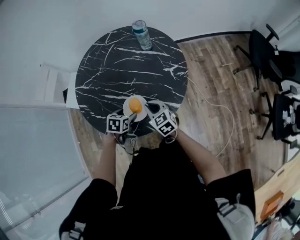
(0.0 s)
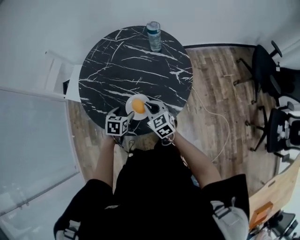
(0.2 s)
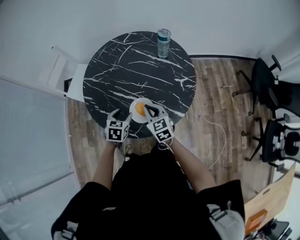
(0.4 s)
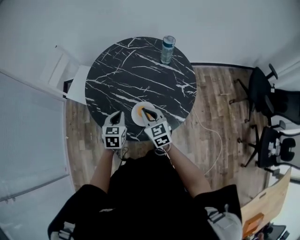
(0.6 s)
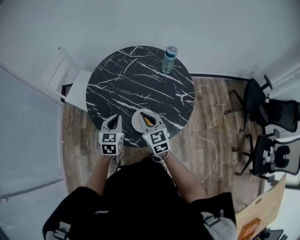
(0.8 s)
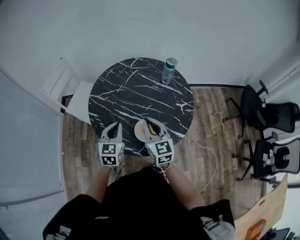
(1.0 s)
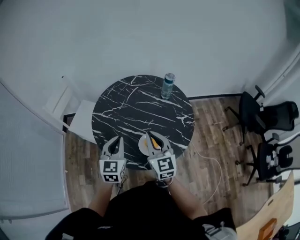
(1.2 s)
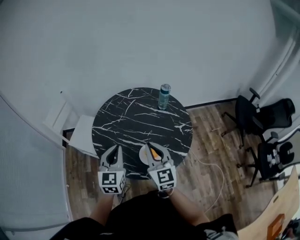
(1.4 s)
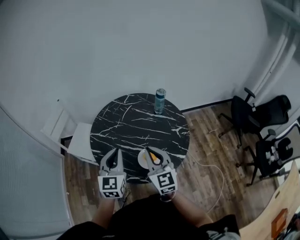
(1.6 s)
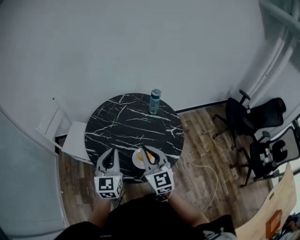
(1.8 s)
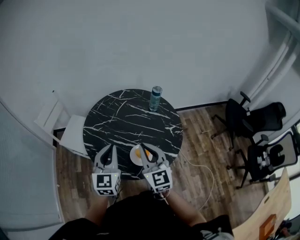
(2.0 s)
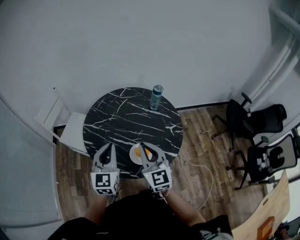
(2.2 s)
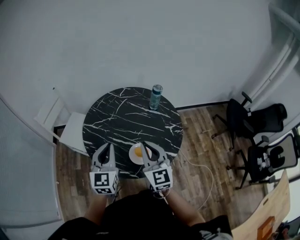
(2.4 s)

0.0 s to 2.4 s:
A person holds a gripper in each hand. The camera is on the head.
0.0 to 1.2 s: Both grippers travel together upward and to the left, approximately 25 cm. The left gripper tips its fingers upward by about 50 degrees, and closes its fingers, while the right gripper changes its angle by some 30 degrees.
1.2 to 2.4 s: The grippers both shift upward by about 5 cm.

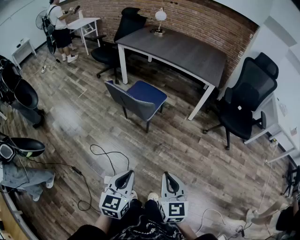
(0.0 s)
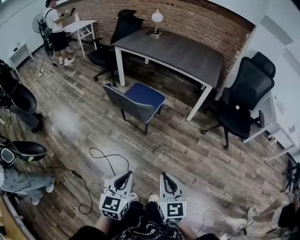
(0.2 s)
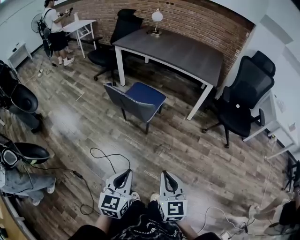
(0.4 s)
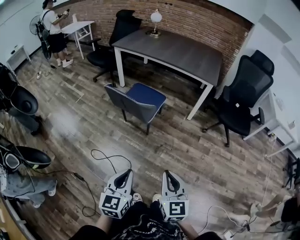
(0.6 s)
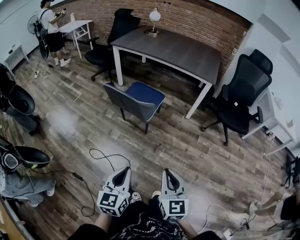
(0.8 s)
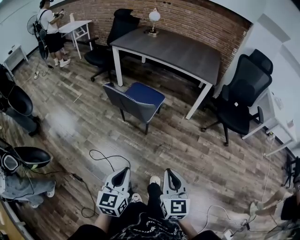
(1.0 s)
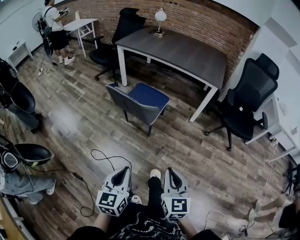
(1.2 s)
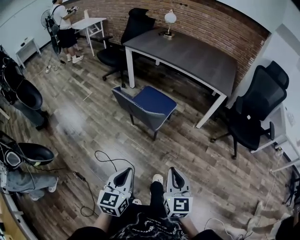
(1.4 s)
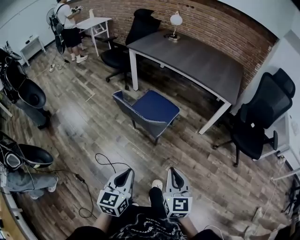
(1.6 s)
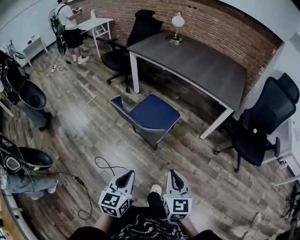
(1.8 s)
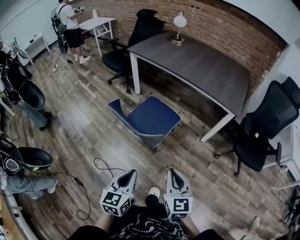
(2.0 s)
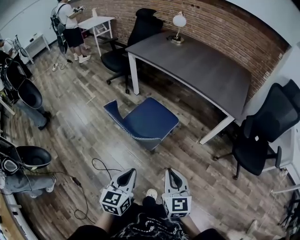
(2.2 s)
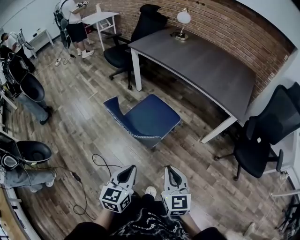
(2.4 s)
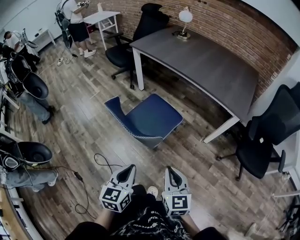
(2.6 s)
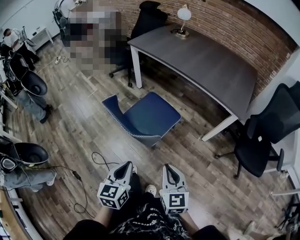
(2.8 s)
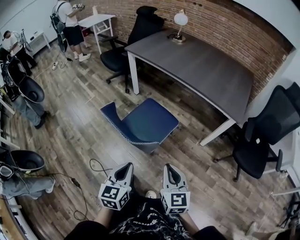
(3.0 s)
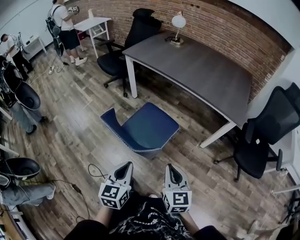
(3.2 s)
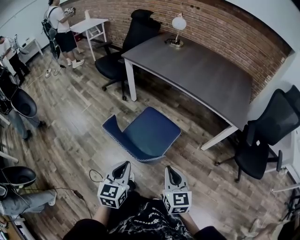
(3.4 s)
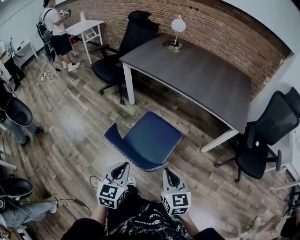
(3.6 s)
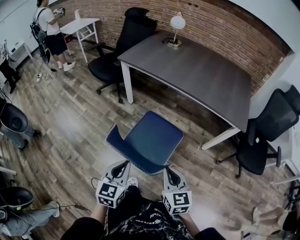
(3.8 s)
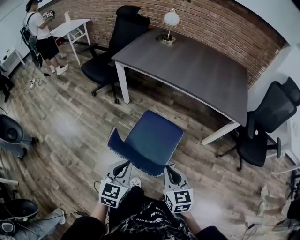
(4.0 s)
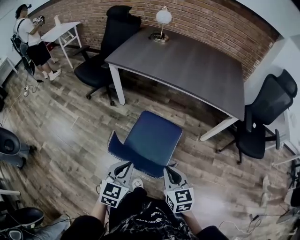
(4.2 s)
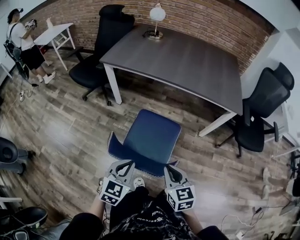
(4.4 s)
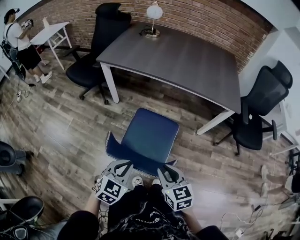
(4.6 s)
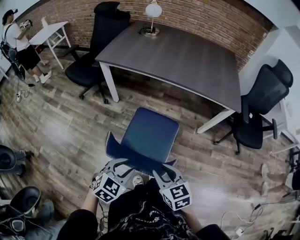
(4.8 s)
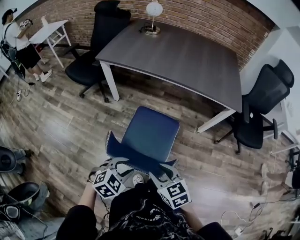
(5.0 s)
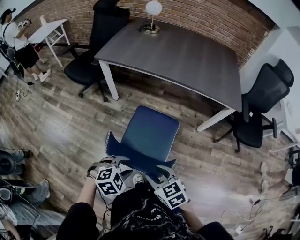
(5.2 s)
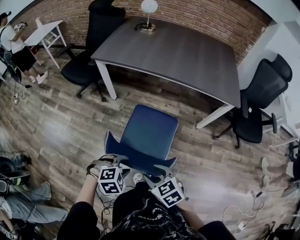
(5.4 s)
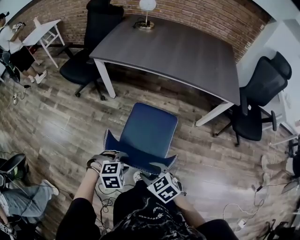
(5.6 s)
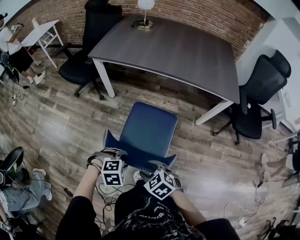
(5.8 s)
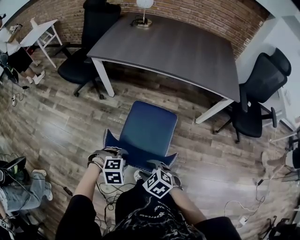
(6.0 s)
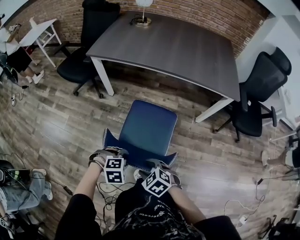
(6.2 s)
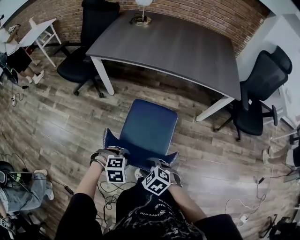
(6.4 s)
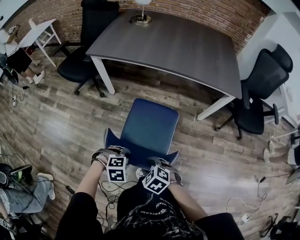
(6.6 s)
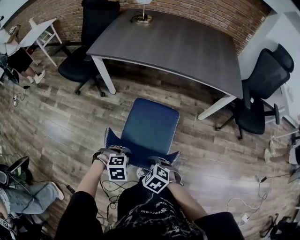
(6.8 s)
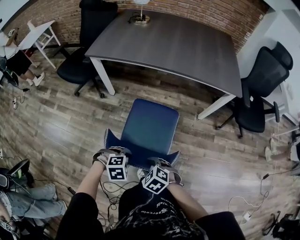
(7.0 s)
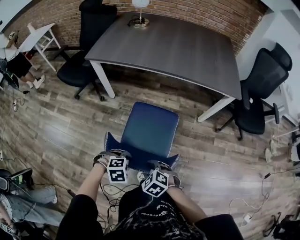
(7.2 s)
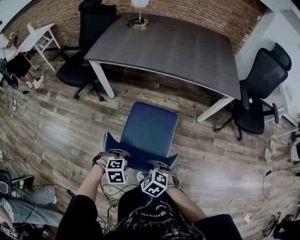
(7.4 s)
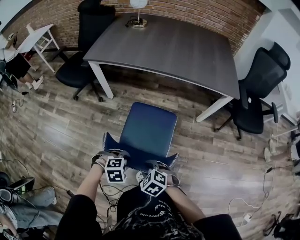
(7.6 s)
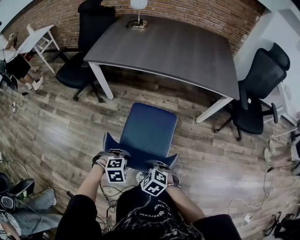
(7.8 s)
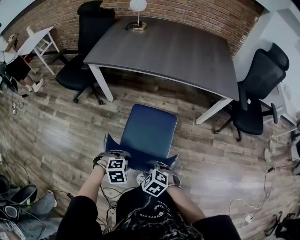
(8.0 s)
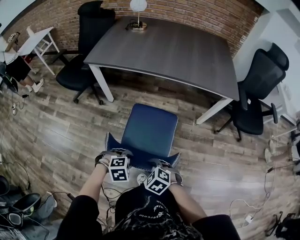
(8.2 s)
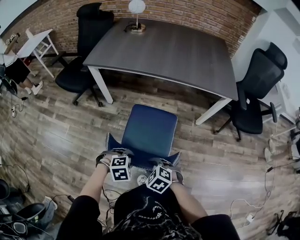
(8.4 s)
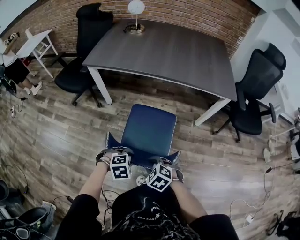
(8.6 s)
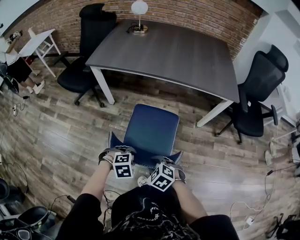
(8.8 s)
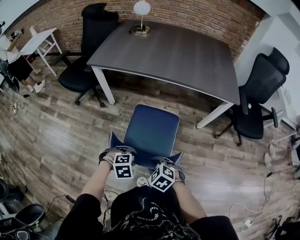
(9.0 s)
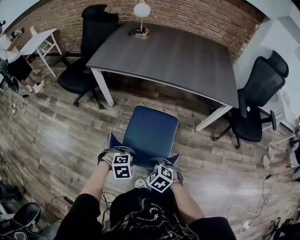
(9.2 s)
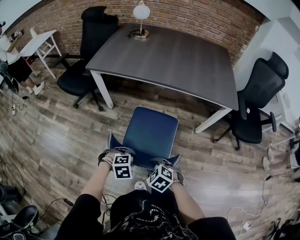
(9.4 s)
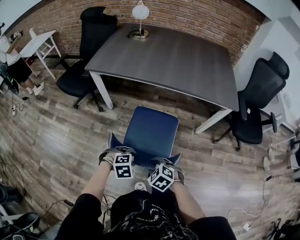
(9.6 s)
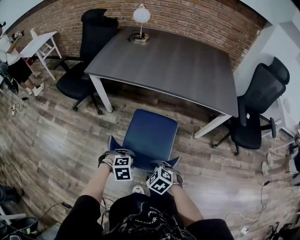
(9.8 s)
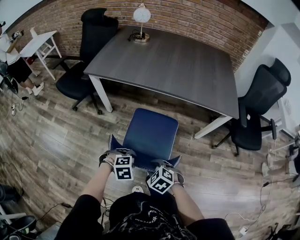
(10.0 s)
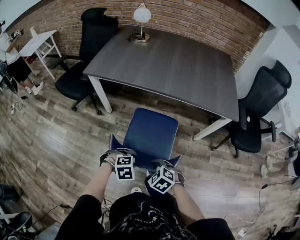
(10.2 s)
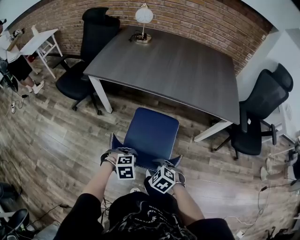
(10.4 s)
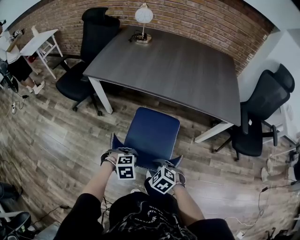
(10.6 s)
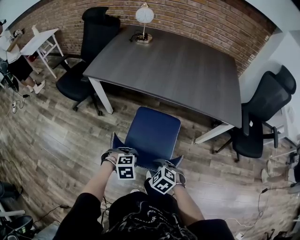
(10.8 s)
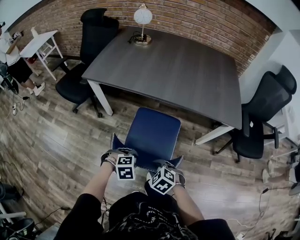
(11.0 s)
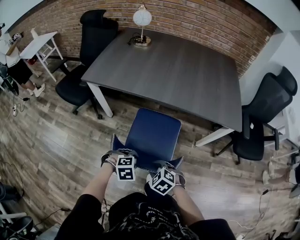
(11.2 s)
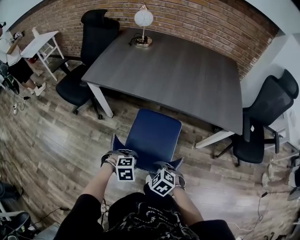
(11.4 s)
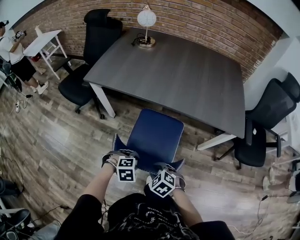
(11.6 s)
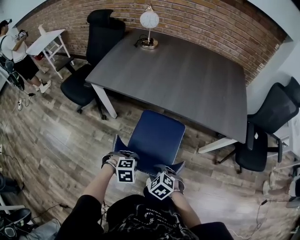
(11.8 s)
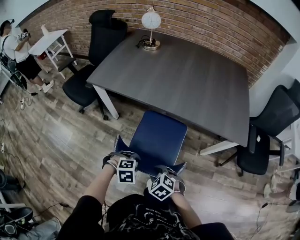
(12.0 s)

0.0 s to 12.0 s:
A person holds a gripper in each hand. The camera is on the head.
0.0 to 1.6 s: The right gripper shifts about 15 cm forward. Meanwhile the left gripper moves forward and to the left, approximately 15 cm.
1.6 to 3.0 s: Both grippers travel together forward, about 15 cm.
3.0 to 4.4 s: The left gripper heads forward and to the left, covering approximately 25 cm, and swivels roughly 40 degrees; the right gripper heads to the left and forward, covering about 20 cm.
4.4 to 6.0 s: The left gripper shifts about 10 cm downward, points its fingers roughly 40 degrees further downward, and opens. The right gripper moves some 15 cm, rotates roughly 40 degrees, and opens up.
6.0 to 7.6 s: The right gripper closes up.
7.6 to 9.0 s: There are only small adjustments of the grippers.
9.0 to 10.4 s: The two grippers go some 10 cm forward.
10.4 to 12.0 s: Both grippers travel together forward, some 10 cm.

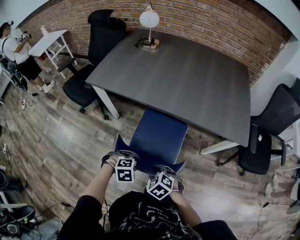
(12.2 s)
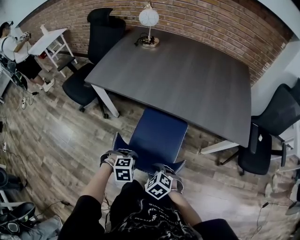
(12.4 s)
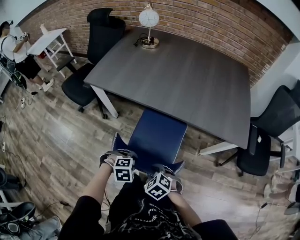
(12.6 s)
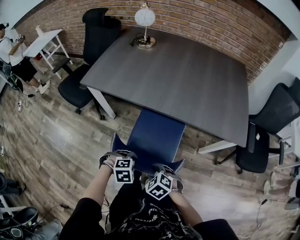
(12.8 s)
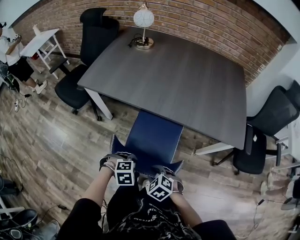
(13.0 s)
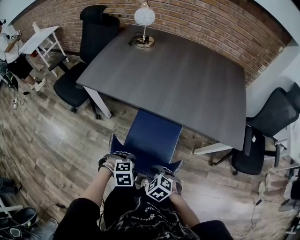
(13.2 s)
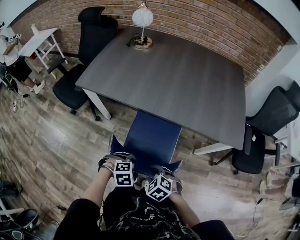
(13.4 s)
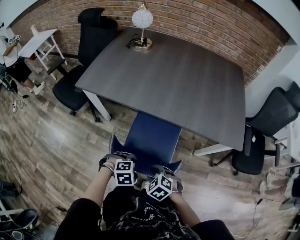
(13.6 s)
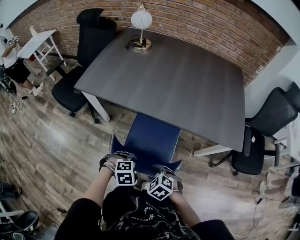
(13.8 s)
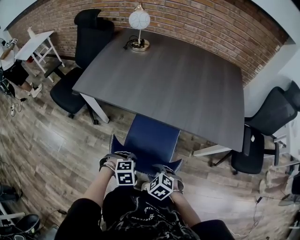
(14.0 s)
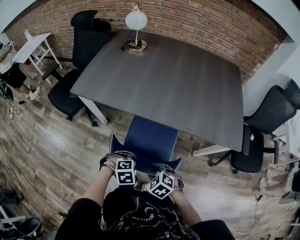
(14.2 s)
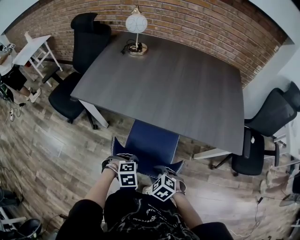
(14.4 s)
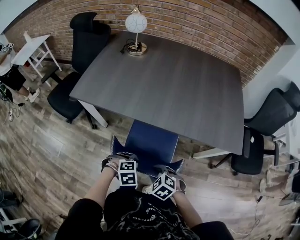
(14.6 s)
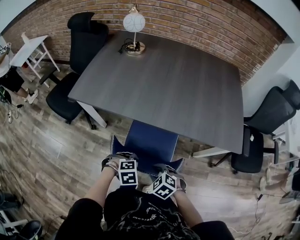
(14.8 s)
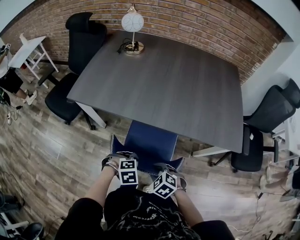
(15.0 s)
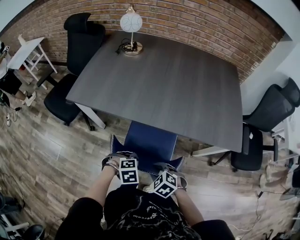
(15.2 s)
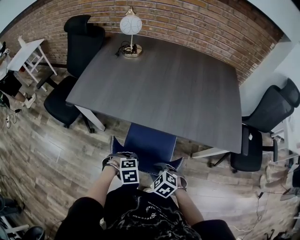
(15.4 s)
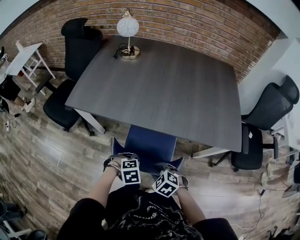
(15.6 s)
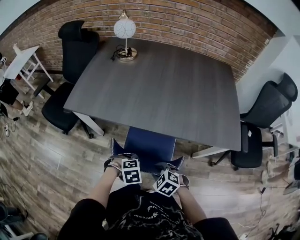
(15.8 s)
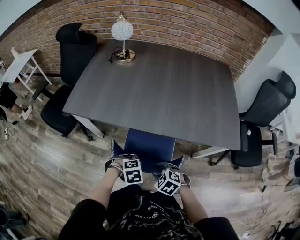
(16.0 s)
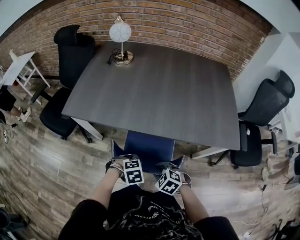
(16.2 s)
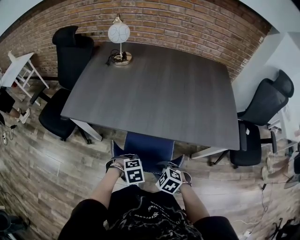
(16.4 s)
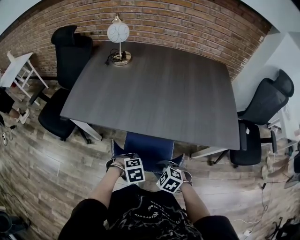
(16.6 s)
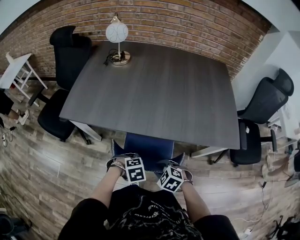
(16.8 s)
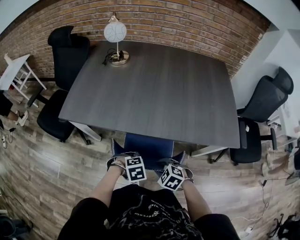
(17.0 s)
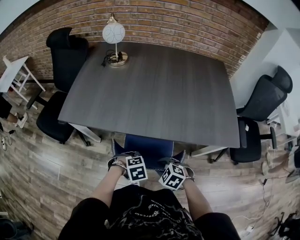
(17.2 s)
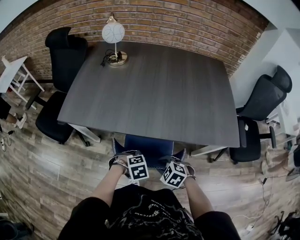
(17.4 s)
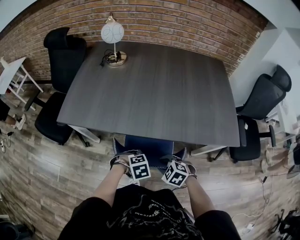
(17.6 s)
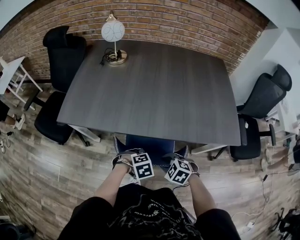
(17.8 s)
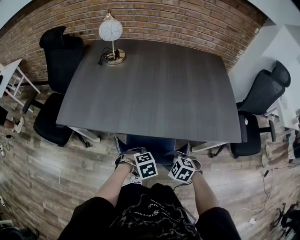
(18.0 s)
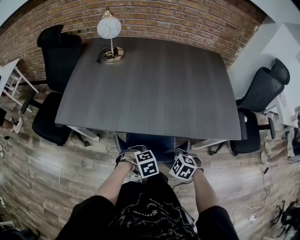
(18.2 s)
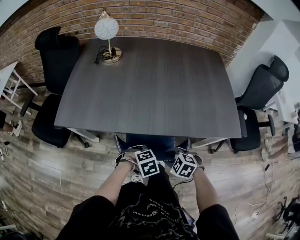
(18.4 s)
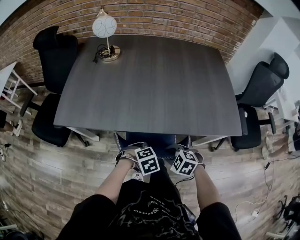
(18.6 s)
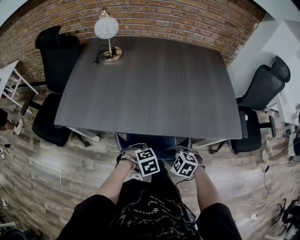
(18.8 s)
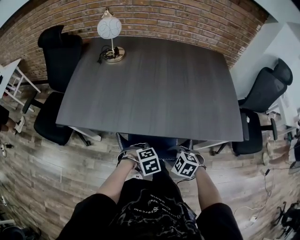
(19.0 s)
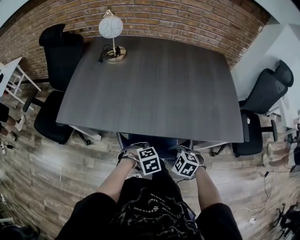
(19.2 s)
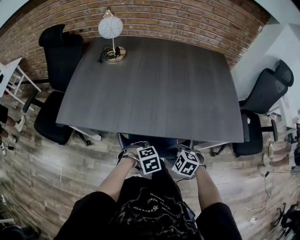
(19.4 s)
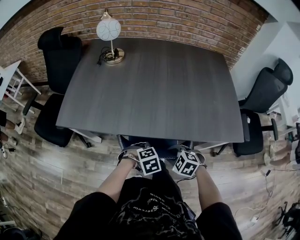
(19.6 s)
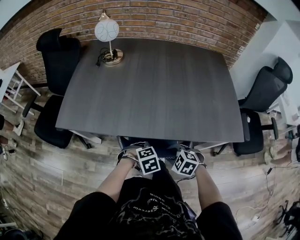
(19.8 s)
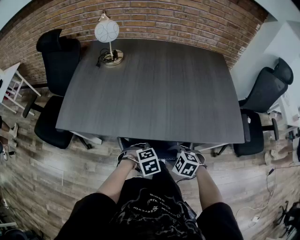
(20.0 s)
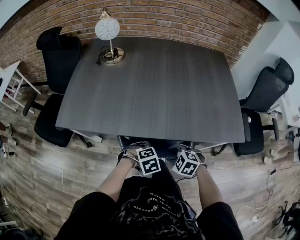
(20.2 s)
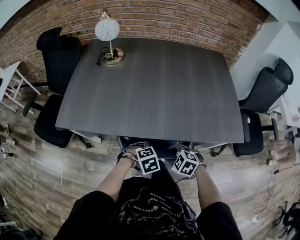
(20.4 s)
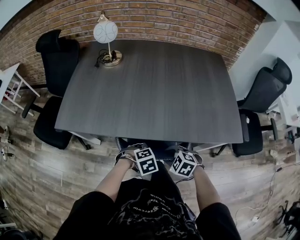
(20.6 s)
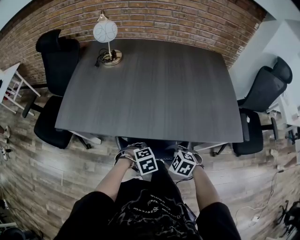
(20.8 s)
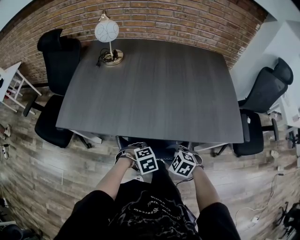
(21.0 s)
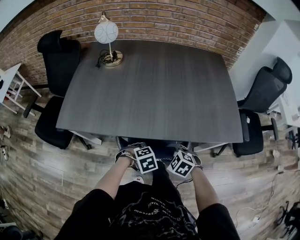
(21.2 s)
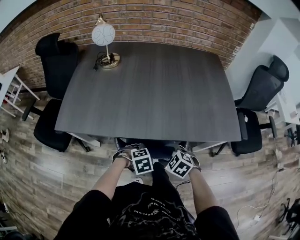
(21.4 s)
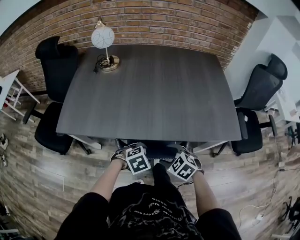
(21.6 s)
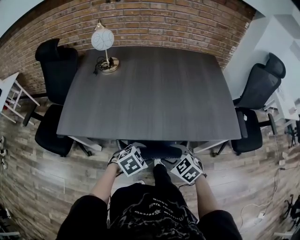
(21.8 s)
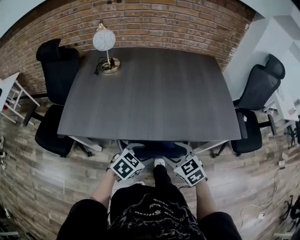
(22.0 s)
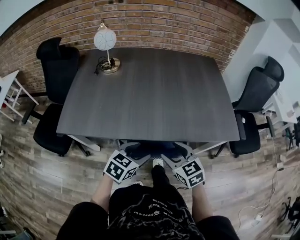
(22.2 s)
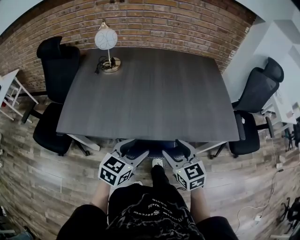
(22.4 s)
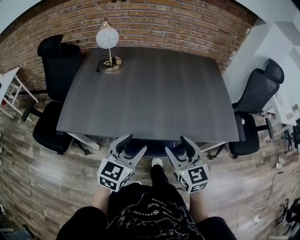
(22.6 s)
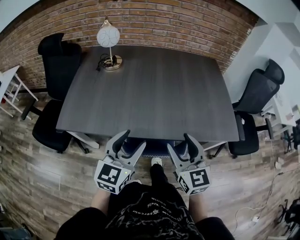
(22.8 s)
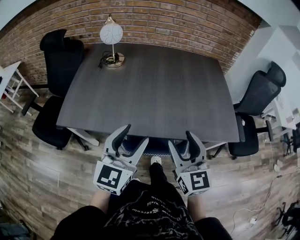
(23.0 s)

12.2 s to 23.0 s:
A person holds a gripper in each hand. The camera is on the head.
12.2 to 13.8 s: Both grippers travel together forward, approximately 5 cm.
13.8 to 15.2 s: The grippers both shift forward by about 5 cm.
15.2 to 16.8 s: The right gripper ends up some 5 cm from where it was.
16.8 to 18.4 s: The right gripper shifts by some 5 cm, while the left gripper moves roughly 5 cm.
18.4 to 20.0 s: The grippers stay close to where they were, moving slightly.
20.0 to 21.4 s: The left gripper opens its fingers, while the right gripper opens up.
21.4 to 23.0 s: Both grippers travel together upward, approximately 25 cm. The right gripper angles its fingers upward, by some 50 degrees; the left gripper tips its fingers upward by some 70 degrees.
